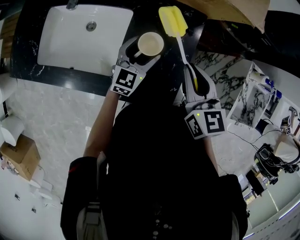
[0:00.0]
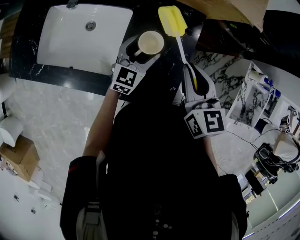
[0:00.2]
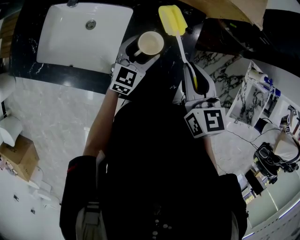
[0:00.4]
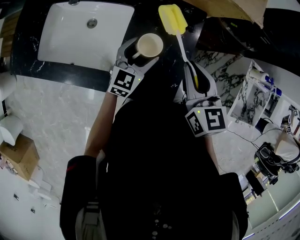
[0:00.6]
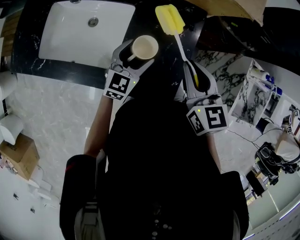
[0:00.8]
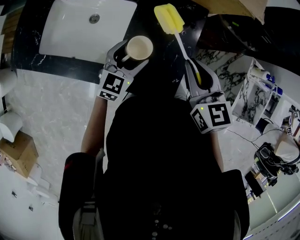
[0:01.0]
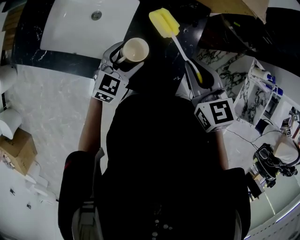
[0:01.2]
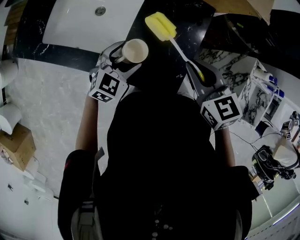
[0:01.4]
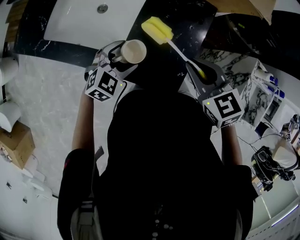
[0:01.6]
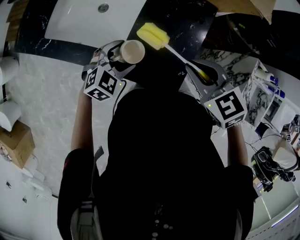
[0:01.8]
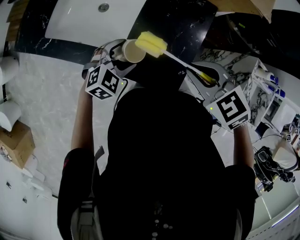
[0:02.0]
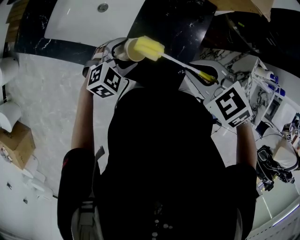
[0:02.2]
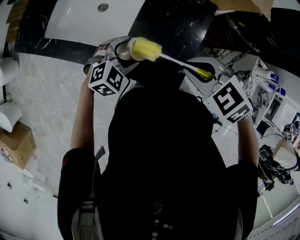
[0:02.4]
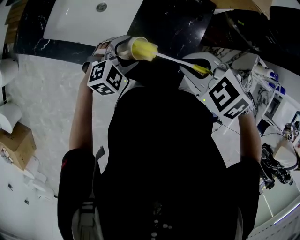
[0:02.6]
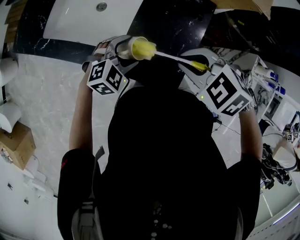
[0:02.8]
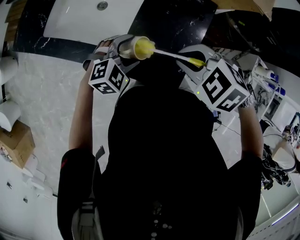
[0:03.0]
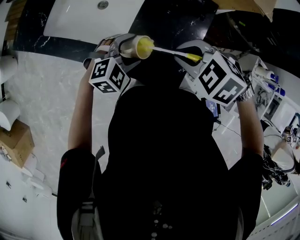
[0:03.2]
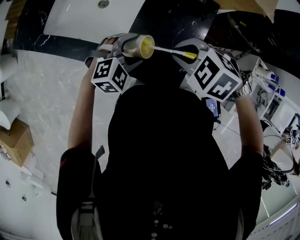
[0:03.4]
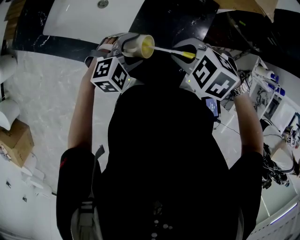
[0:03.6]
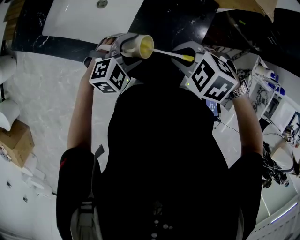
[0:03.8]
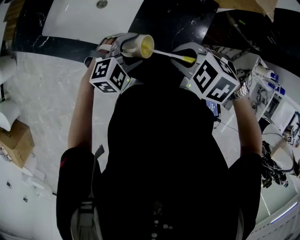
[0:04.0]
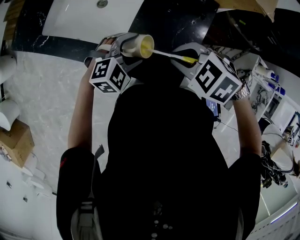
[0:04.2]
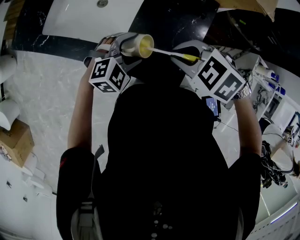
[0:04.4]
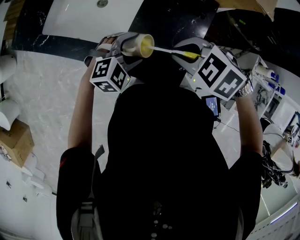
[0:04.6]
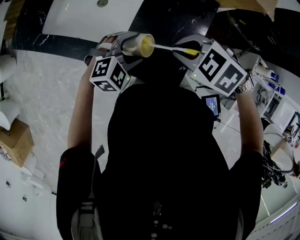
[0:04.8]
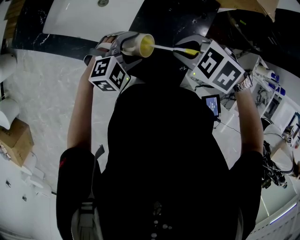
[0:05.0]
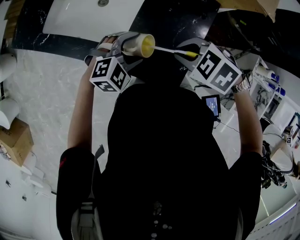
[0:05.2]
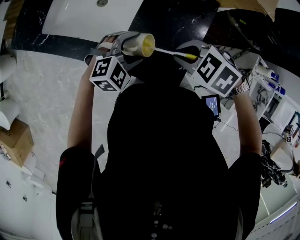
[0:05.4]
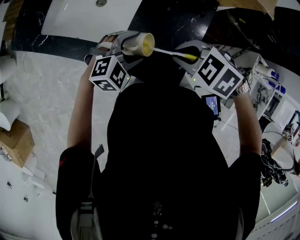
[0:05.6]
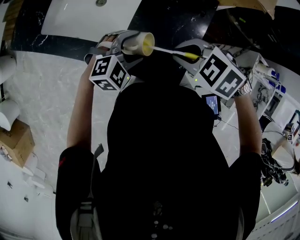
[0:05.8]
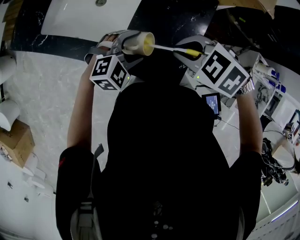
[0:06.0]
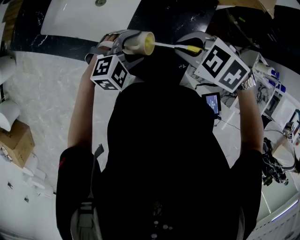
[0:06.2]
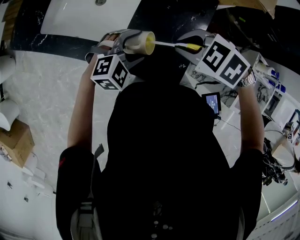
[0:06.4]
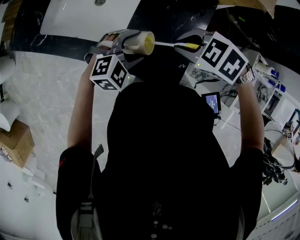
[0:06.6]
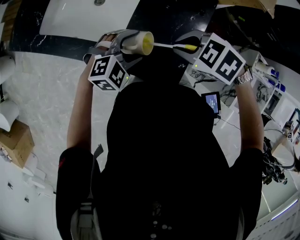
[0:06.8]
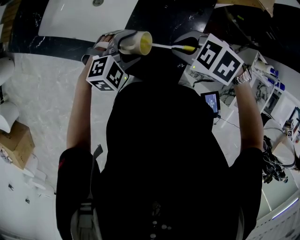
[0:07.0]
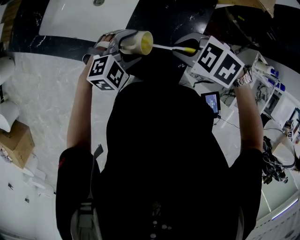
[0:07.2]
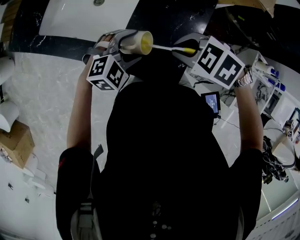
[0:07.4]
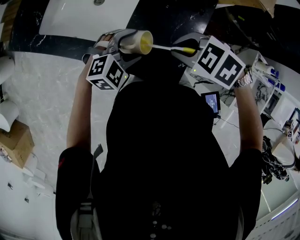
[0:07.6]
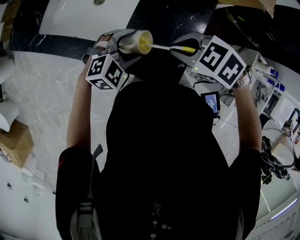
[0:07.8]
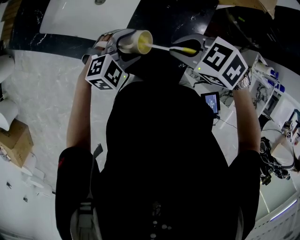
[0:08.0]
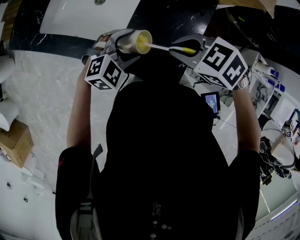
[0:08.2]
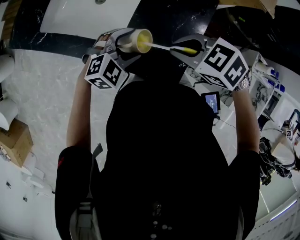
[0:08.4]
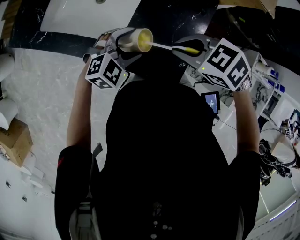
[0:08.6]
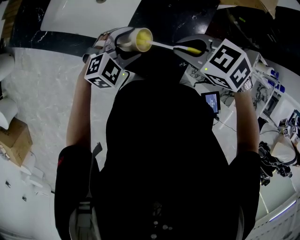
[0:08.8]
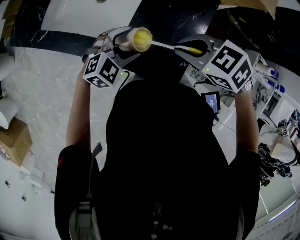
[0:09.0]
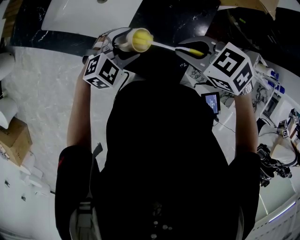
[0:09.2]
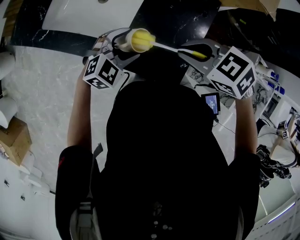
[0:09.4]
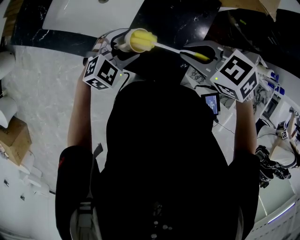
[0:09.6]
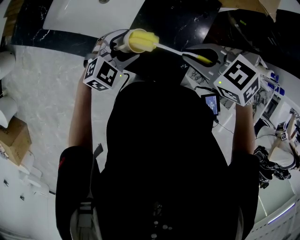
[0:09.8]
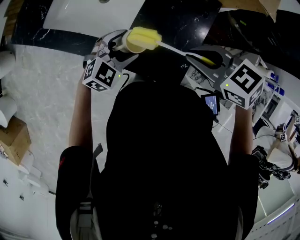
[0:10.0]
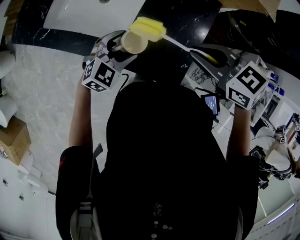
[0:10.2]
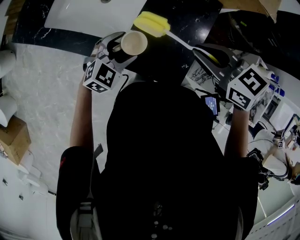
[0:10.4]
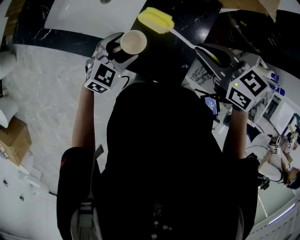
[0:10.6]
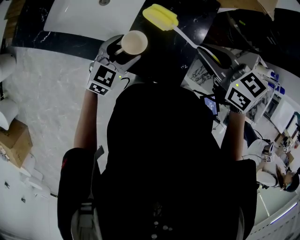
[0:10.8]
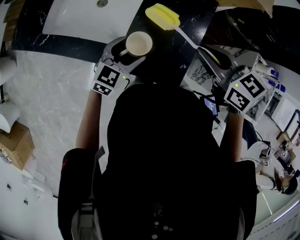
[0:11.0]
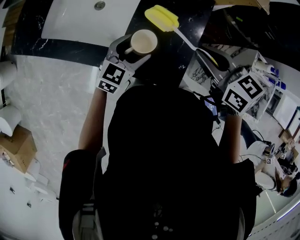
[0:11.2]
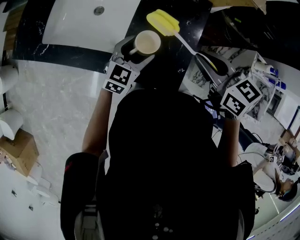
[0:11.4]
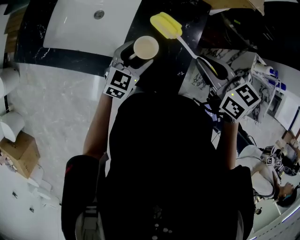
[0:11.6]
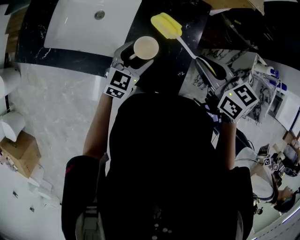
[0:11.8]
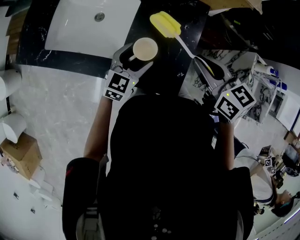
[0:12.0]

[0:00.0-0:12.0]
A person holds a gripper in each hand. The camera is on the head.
0:00.0 to 0:01.6: The left gripper is displaced backward and to the left by some 15 cm, and changes its angle by about 30 degrees; the right gripper goes roughly 5 cm backward, and changes its angle by approximately 30 degrees.
0:01.6 to 0:03.0: The right gripper changes its angle by approximately 40 degrees.
0:03.0 to 0:09.0: The grippers move only a little.
0:09.0 to 0:10.4: The right gripper ends up approximately 5 cm from where it was, and rotates roughly 20 degrees.
0:10.4 to 0:12.0: Both grippers travel together to the right, some 5 cm. The right gripper swivels some 30 degrees.

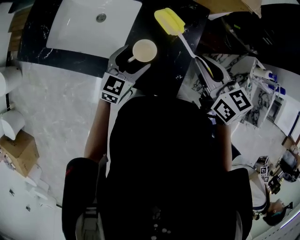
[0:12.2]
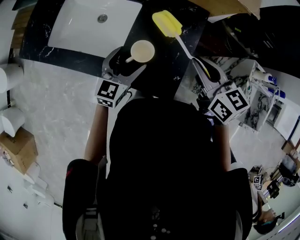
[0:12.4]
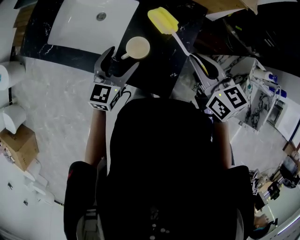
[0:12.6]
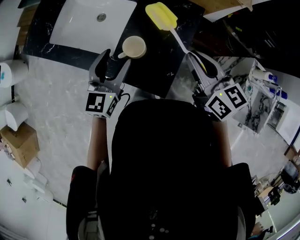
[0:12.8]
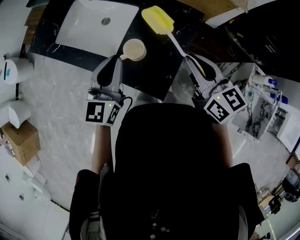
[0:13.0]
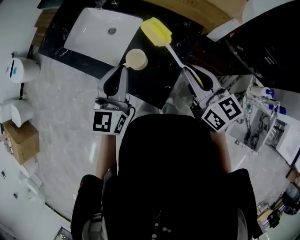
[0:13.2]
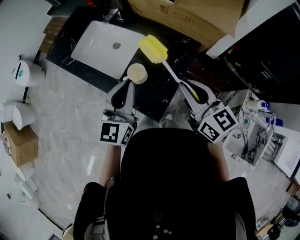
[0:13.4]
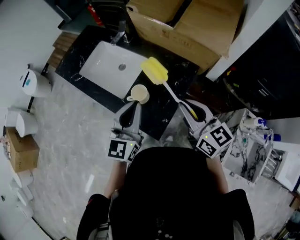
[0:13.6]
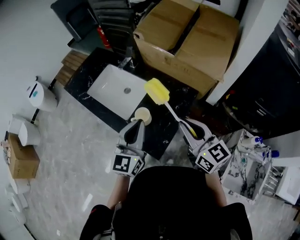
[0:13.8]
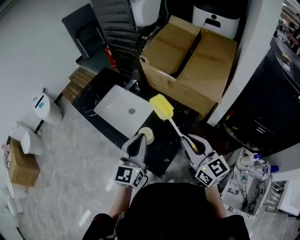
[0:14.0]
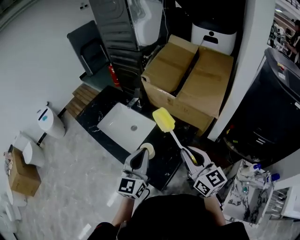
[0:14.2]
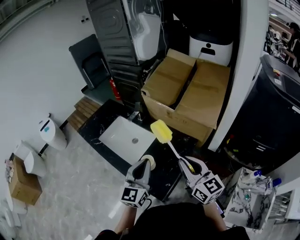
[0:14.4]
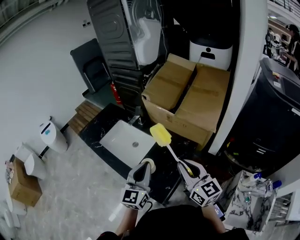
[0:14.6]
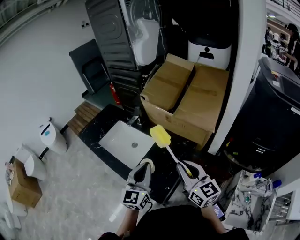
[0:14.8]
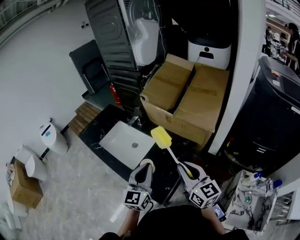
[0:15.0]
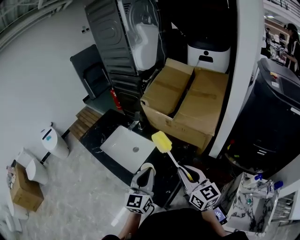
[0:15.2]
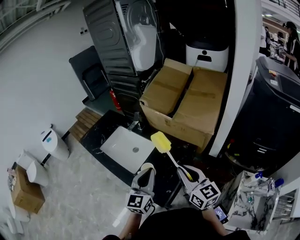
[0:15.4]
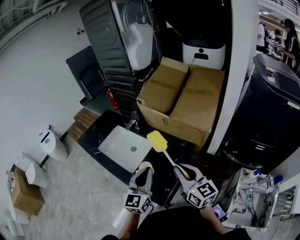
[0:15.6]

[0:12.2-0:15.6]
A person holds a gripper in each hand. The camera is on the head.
0:12.2 to 0:13.8: The right gripper is displaced upward and backward by some 15 cm, and turns by some 30 degrees. The left gripper travels upward by roughly 25 cm, swivels roughly 40 degrees, and closes.
0:13.8 to 0:15.6: The grippers make only small movements.

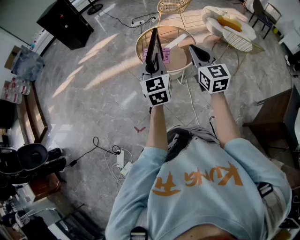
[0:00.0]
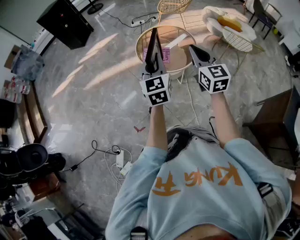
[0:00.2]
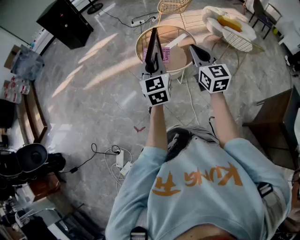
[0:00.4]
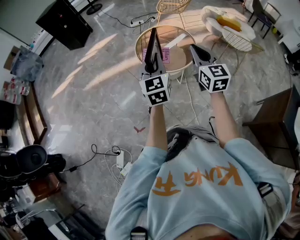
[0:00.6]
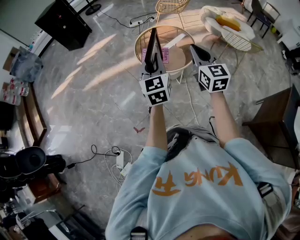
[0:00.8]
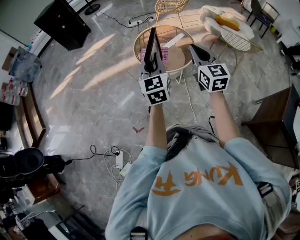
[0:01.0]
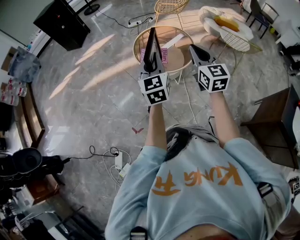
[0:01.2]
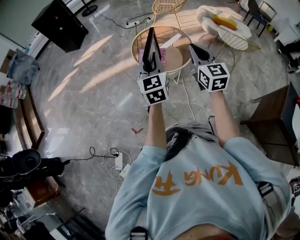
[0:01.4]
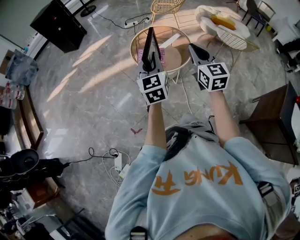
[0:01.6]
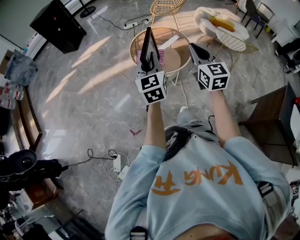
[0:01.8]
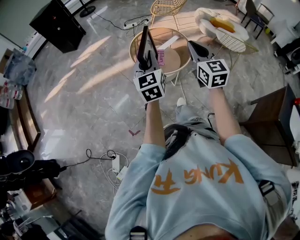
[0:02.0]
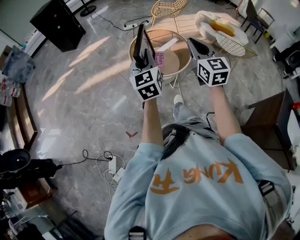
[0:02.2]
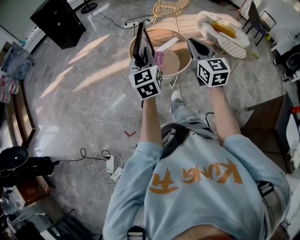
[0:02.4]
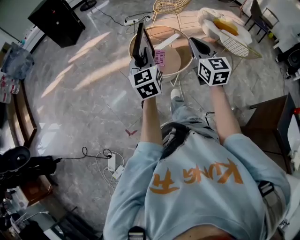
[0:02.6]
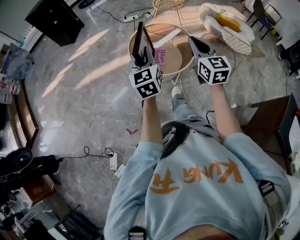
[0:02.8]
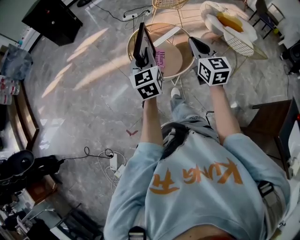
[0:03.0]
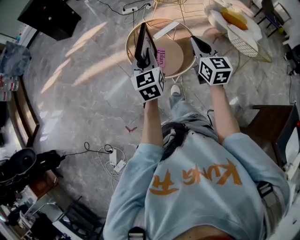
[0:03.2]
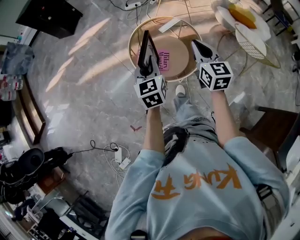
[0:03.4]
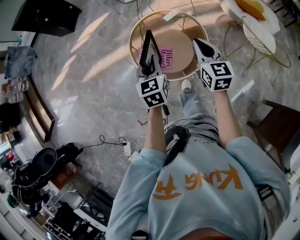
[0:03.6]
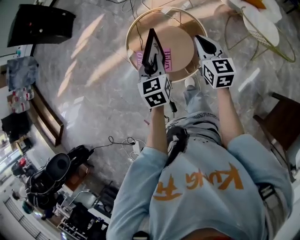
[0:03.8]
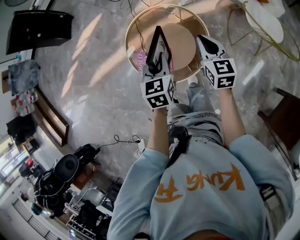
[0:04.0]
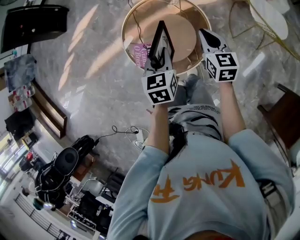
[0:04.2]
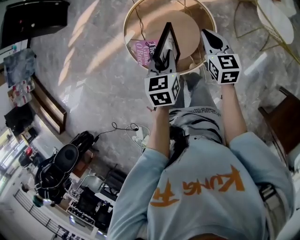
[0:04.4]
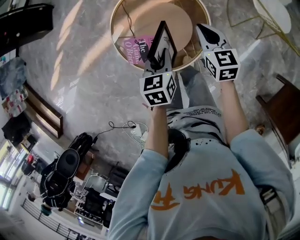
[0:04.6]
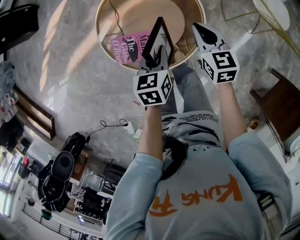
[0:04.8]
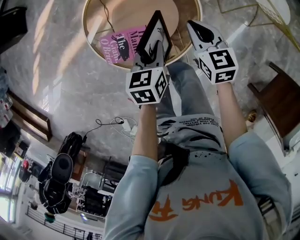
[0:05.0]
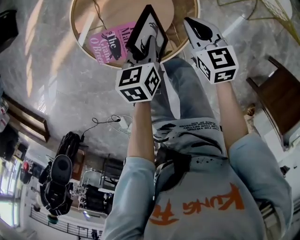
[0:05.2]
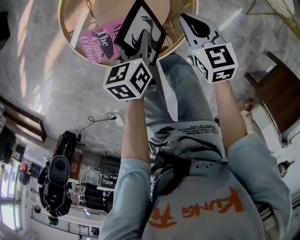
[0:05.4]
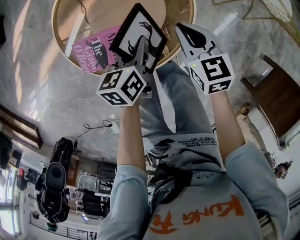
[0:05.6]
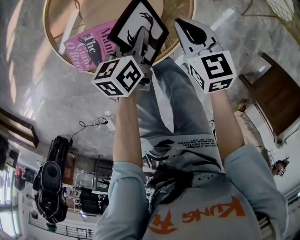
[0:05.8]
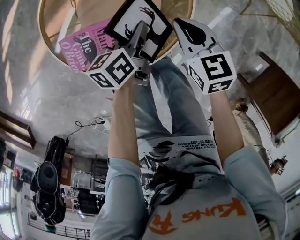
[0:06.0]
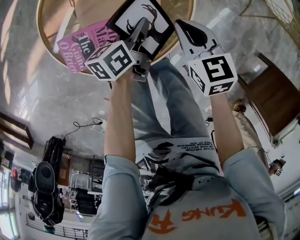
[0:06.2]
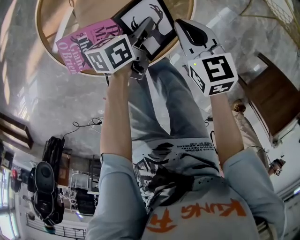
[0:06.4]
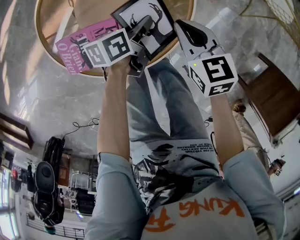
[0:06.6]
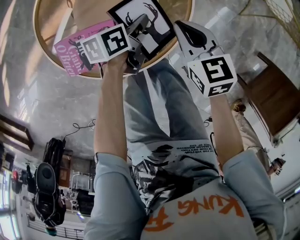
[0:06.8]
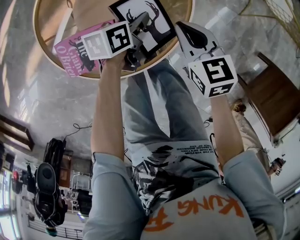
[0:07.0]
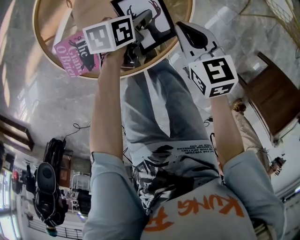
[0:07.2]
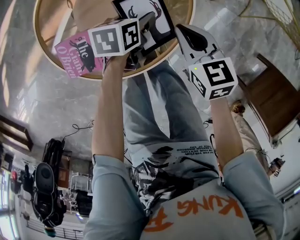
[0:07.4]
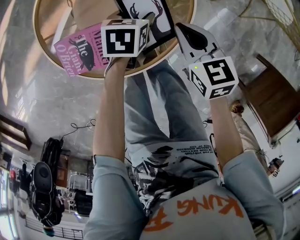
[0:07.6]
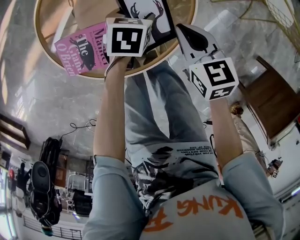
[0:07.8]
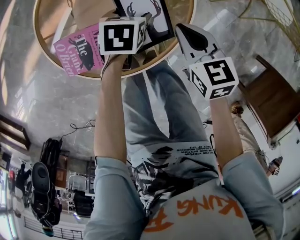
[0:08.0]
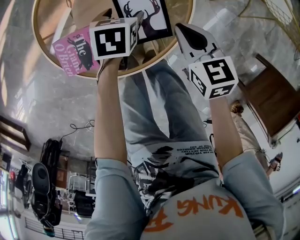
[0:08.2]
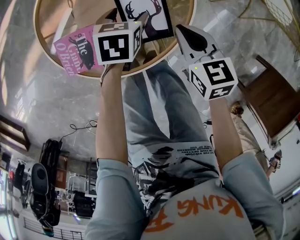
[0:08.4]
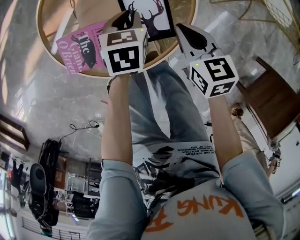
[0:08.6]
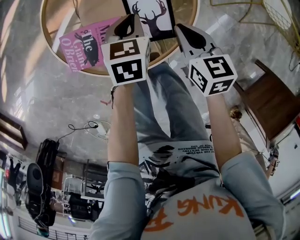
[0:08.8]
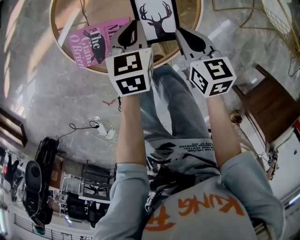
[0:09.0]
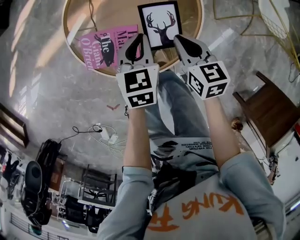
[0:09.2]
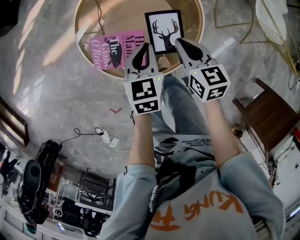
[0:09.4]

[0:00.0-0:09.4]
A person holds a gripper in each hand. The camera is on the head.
0:00.0 to 0:01.6: The grippers stay close to where they were, moving slightly.
0:01.6 to 0:03.2: Both grippers travel together forward, some 20 cm.
0:03.2 to 0:04.8: The left gripper travels downward, forward and to the right by approximately 35 cm, and points its fingers roughly 30 degrees further downward, while the right gripper heads downward and forward, covering roughly 35 cm, and changes its angle by about 20 degrees.
0:04.8 to 0:06.2: The two grippers go some 20 cm downward. The left gripper changes its angle by roughly 30 degrees.
0:06.2 to 0:07.8: The left gripper is displaced downward by roughly 5 cm, tips its fingers downward by some 30 degrees, and opens its fingers.
0:07.8 to 0:09.4: The left gripper travels upward by about 20 cm, rotates some 30 degrees, and closes; the right gripper heads upward and to the left, covering approximately 10 cm.
